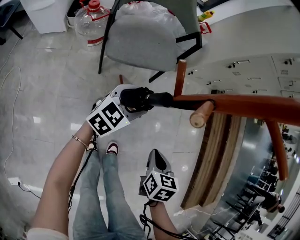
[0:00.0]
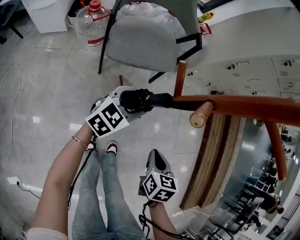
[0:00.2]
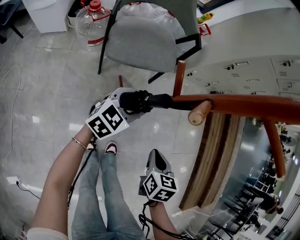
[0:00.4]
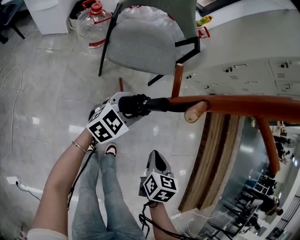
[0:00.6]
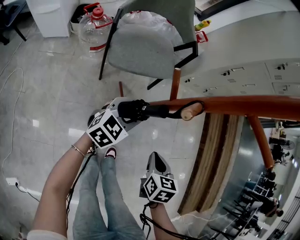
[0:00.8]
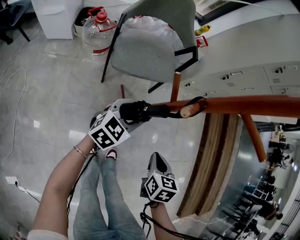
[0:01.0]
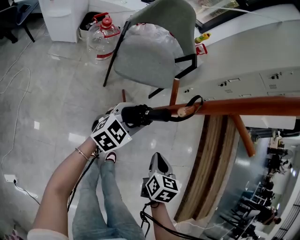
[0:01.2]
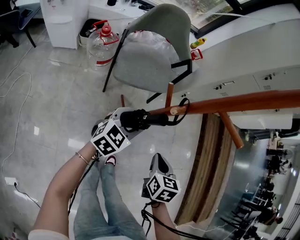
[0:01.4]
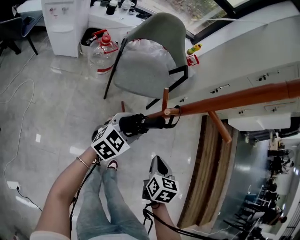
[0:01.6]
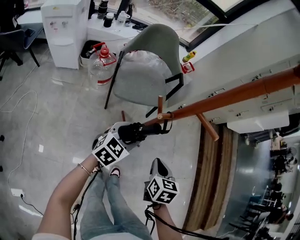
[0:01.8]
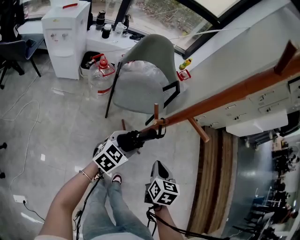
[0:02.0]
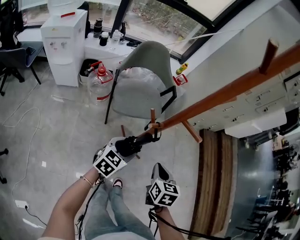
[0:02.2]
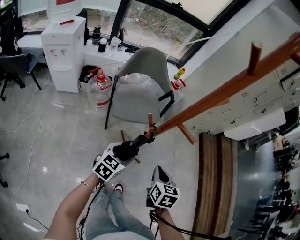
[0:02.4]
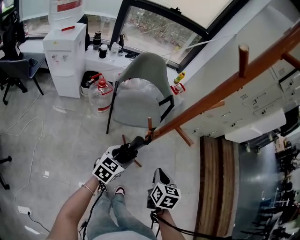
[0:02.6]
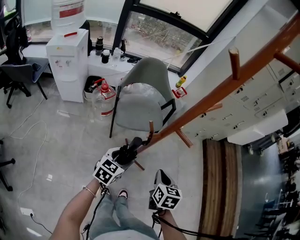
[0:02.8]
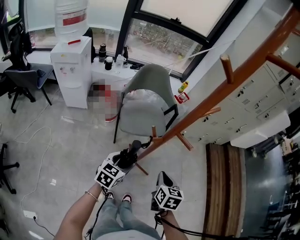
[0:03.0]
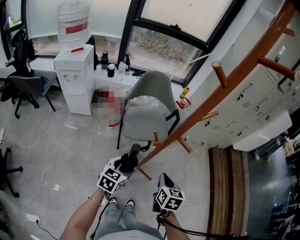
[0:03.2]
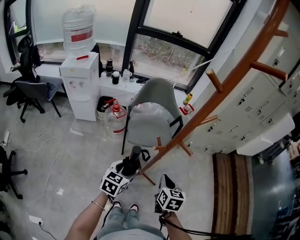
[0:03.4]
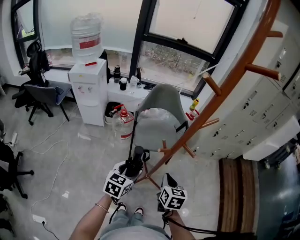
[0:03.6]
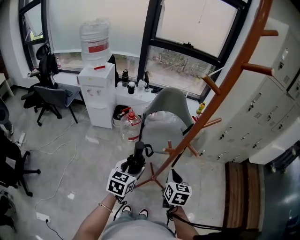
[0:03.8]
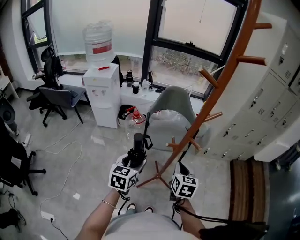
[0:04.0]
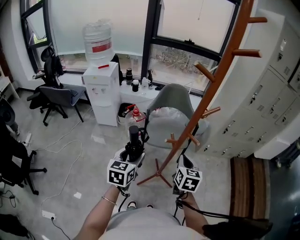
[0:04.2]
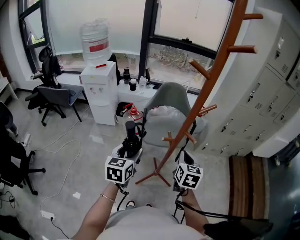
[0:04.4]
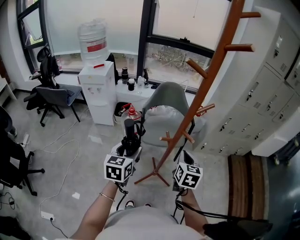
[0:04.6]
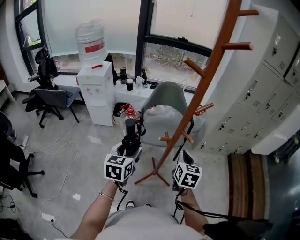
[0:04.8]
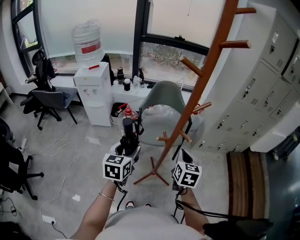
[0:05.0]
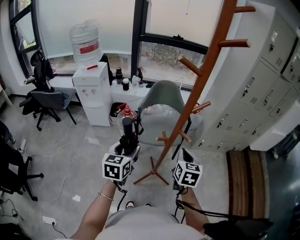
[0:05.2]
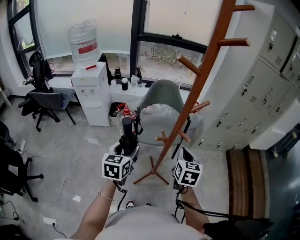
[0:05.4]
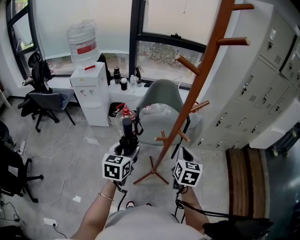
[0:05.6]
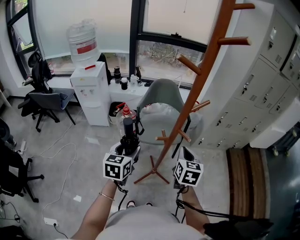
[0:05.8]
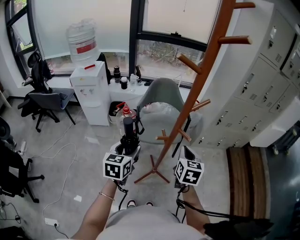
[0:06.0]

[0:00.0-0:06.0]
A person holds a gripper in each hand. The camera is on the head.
0:00.0 to 0:01.6: The right gripper shifts about 10 cm upward, while the left gripper shifts approximately 15 cm upward and backward.
0:01.6 to 0:03.0: The left gripper moves upward and backward, some 10 cm. The right gripper moves upward, about 10 cm.
0:03.0 to 0:04.4: The right gripper is displaced upward and forward by some 10 cm; the left gripper is displaced upward and to the left by approximately 15 cm, and changes its angle by about 30 degrees.
0:04.4 to 0:06.0: There are only small adjustments of the grippers.

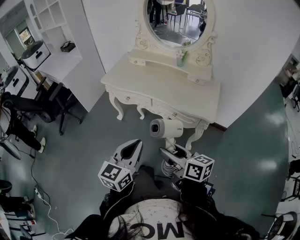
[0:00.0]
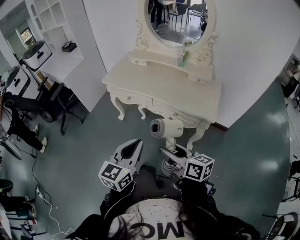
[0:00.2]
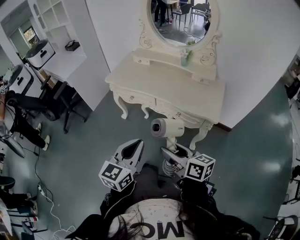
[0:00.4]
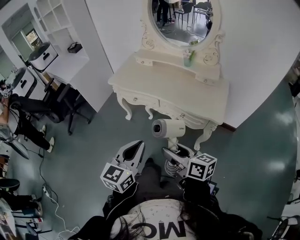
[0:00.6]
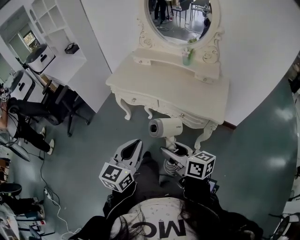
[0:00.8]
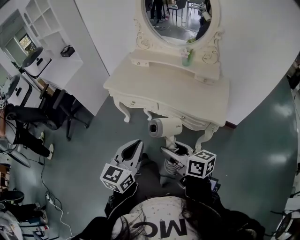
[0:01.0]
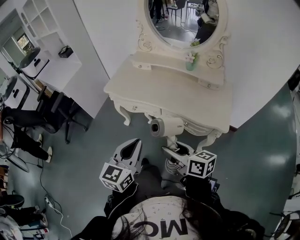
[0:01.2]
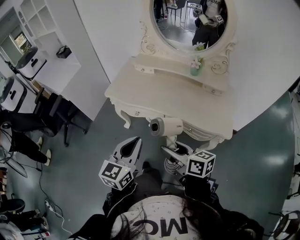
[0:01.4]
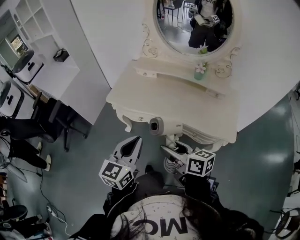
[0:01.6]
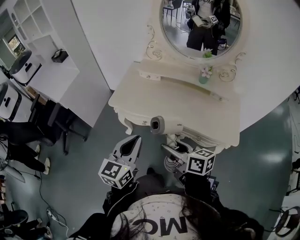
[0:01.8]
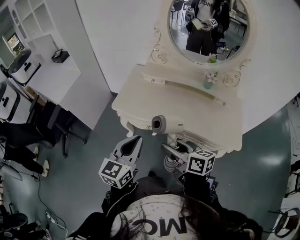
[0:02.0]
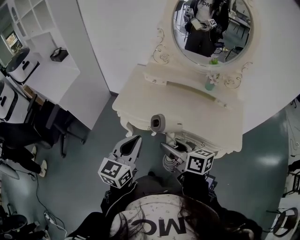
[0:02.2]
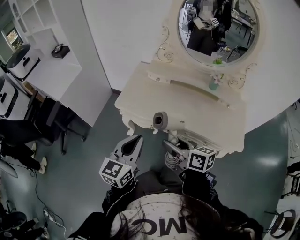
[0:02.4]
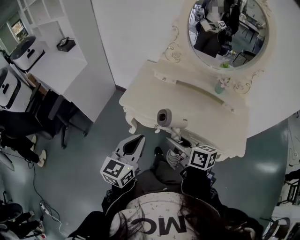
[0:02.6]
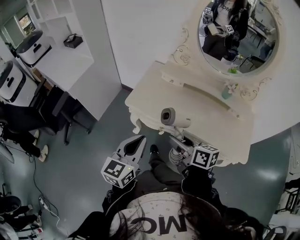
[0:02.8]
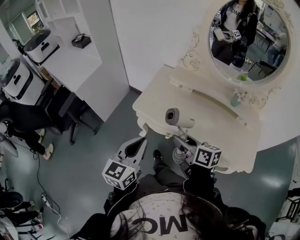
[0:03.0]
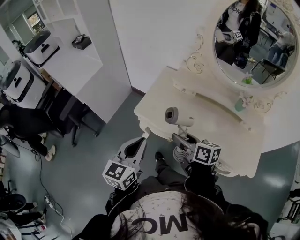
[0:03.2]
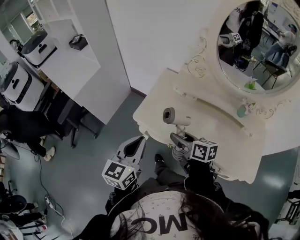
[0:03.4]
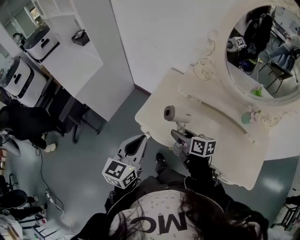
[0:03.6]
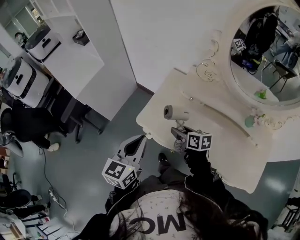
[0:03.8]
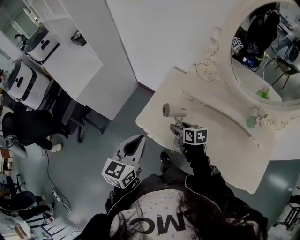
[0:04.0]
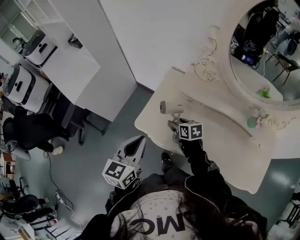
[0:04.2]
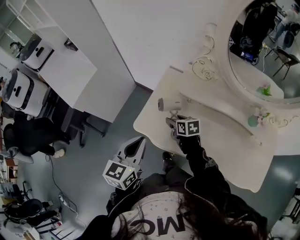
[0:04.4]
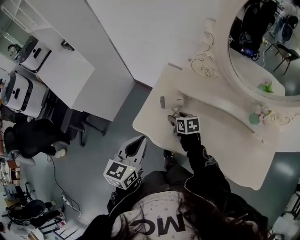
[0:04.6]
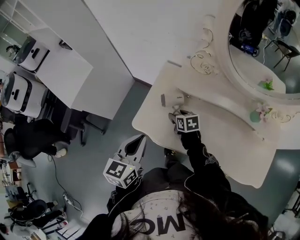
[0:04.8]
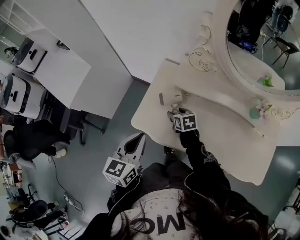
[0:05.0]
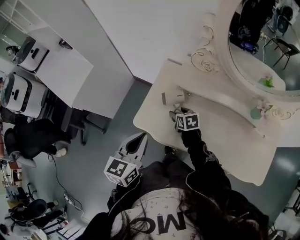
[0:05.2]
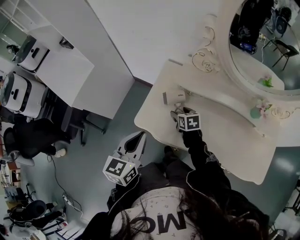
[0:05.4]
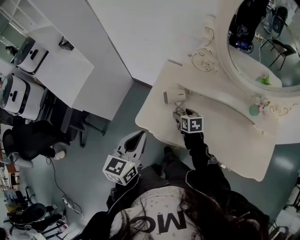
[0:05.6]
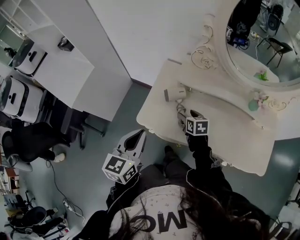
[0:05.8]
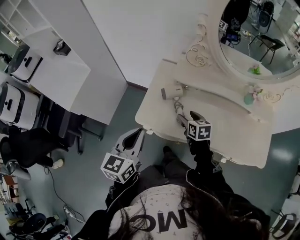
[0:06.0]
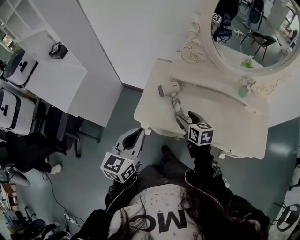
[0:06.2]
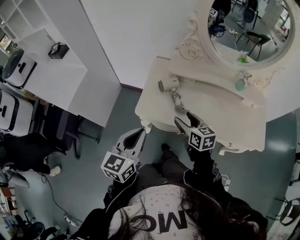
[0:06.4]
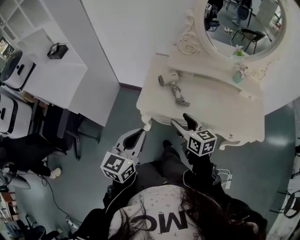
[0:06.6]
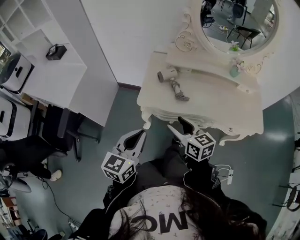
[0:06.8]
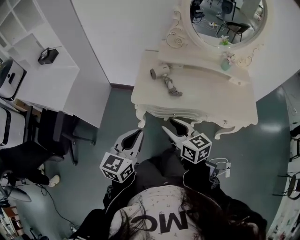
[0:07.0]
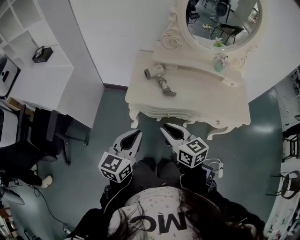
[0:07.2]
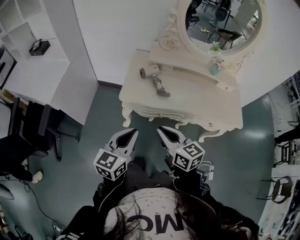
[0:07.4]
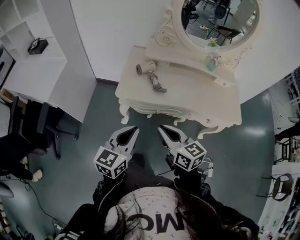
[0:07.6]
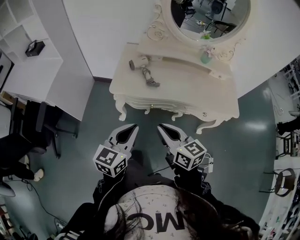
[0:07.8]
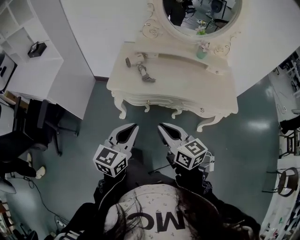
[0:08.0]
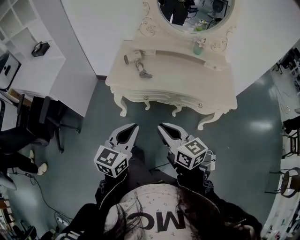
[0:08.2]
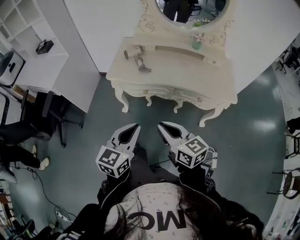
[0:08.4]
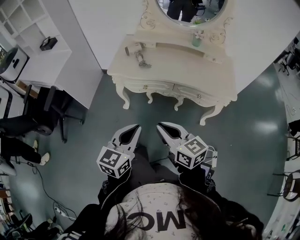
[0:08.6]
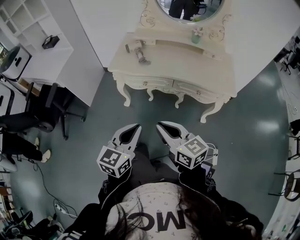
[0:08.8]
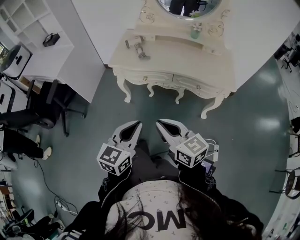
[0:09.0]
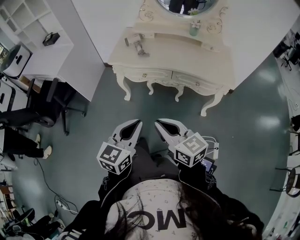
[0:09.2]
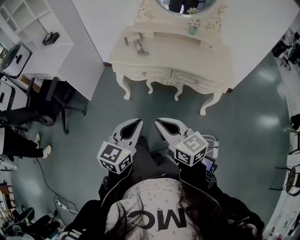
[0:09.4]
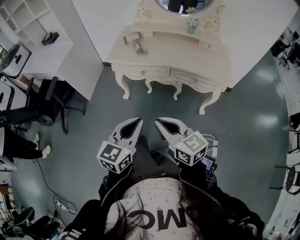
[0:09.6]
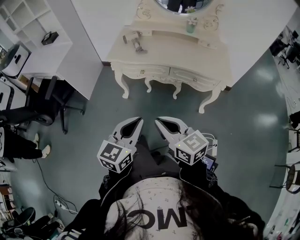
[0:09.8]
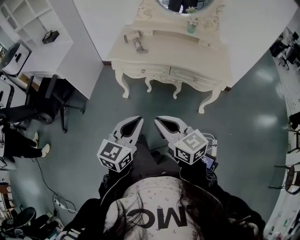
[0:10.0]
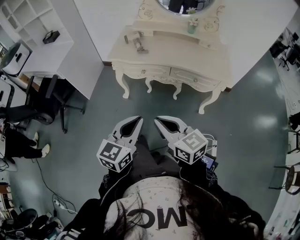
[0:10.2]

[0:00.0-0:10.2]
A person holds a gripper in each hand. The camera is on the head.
0:00.0 to 0:01.4: Both grippers travel together forward, approximately 15 cm.
0:01.4 to 0:03.0: Both grippers travel together forward and to the left, some 25 cm.
0:03.0 to 0:04.4: The right gripper is displaced forward and downward by roughly 35 cm, and swivels about 20 degrees, while the left gripper moves forward, approximately 20 cm.
0:04.4 to 0:05.8: The right gripper travels to the right by some 5 cm.
0:05.8 to 0:07.2: The left gripper travels backward by some 15 cm, and swivels about 20 degrees; the right gripper travels backward and upward by approximately 35 cm, changes its angle by approximately 30 degrees, and closes its fingers.
0:07.2 to 0:08.8: The two grippers go about 30 cm backward and to the right.
0:08.8 to 0:10.2: The grippers both shift backward by about 5 cm.

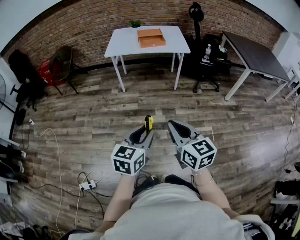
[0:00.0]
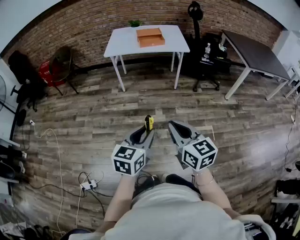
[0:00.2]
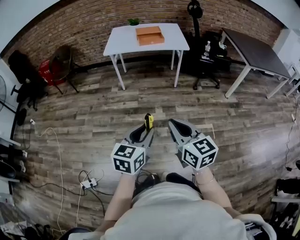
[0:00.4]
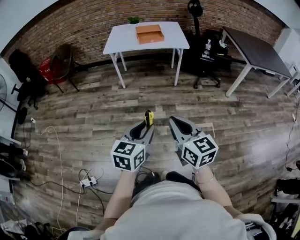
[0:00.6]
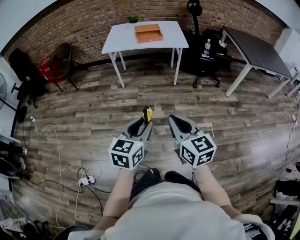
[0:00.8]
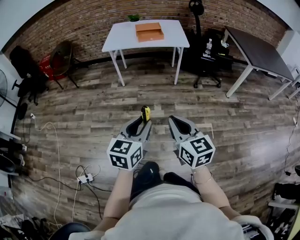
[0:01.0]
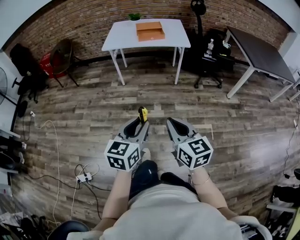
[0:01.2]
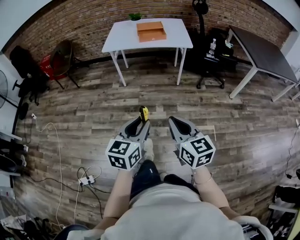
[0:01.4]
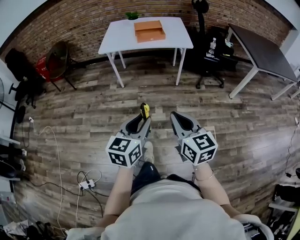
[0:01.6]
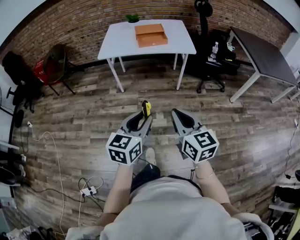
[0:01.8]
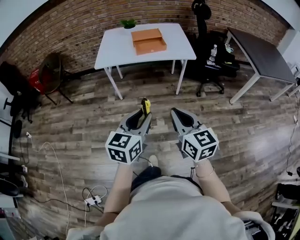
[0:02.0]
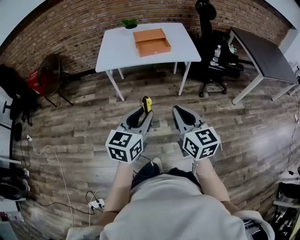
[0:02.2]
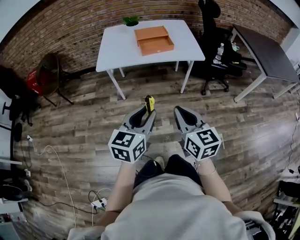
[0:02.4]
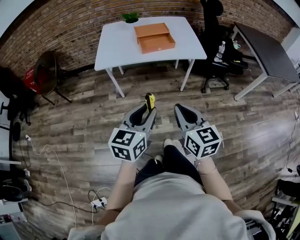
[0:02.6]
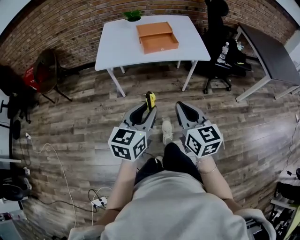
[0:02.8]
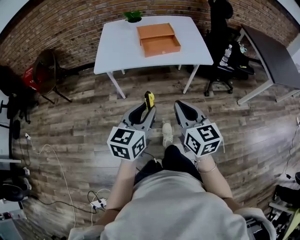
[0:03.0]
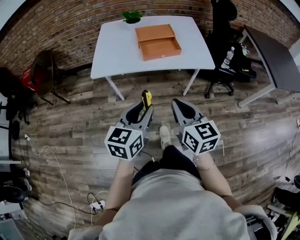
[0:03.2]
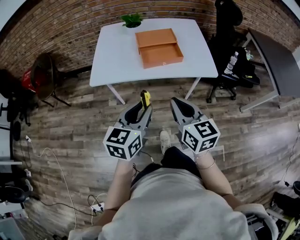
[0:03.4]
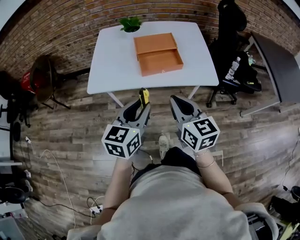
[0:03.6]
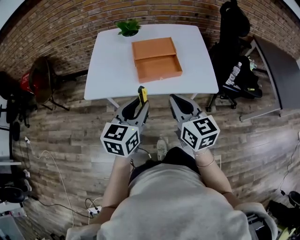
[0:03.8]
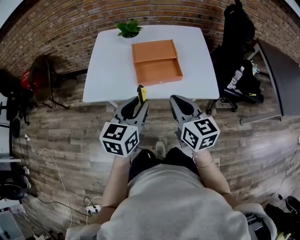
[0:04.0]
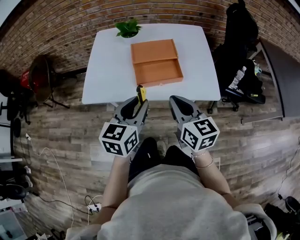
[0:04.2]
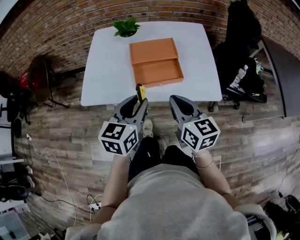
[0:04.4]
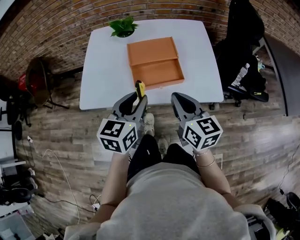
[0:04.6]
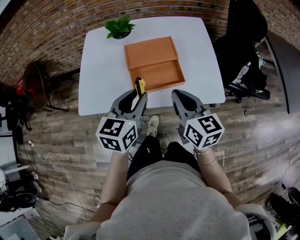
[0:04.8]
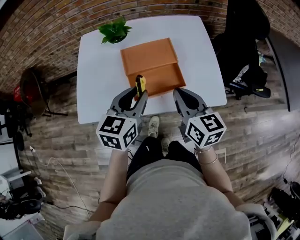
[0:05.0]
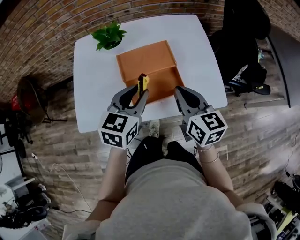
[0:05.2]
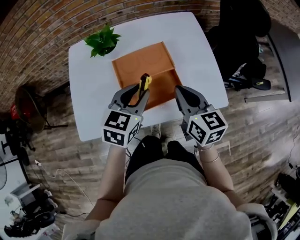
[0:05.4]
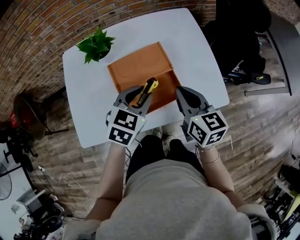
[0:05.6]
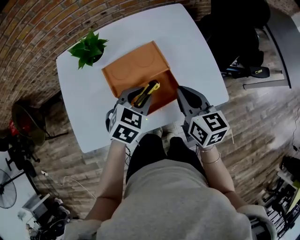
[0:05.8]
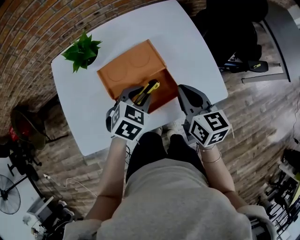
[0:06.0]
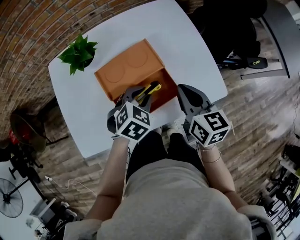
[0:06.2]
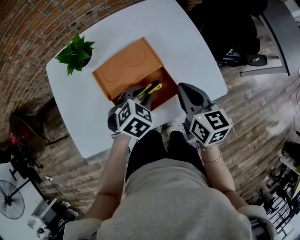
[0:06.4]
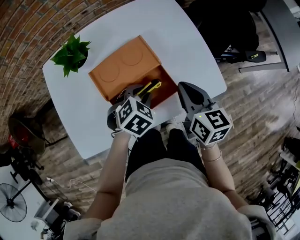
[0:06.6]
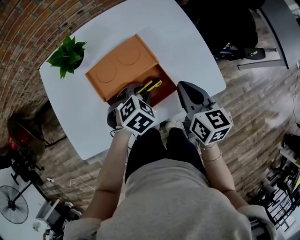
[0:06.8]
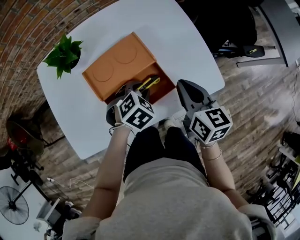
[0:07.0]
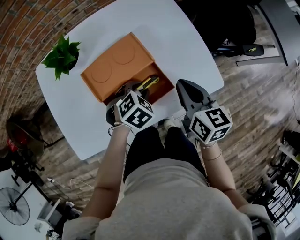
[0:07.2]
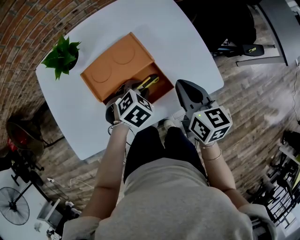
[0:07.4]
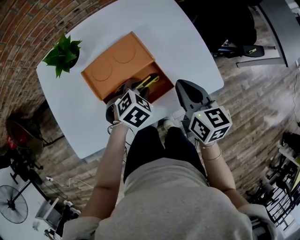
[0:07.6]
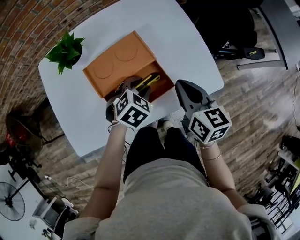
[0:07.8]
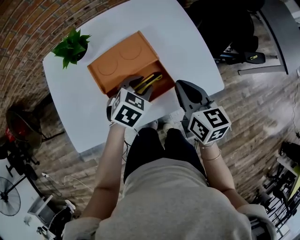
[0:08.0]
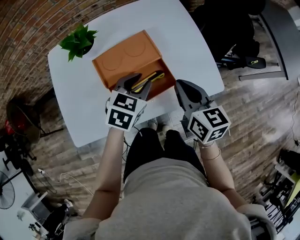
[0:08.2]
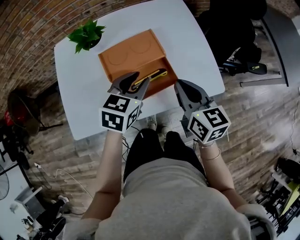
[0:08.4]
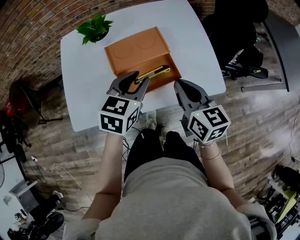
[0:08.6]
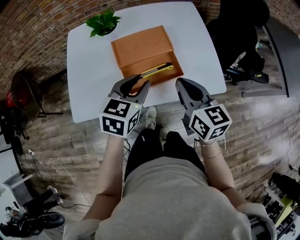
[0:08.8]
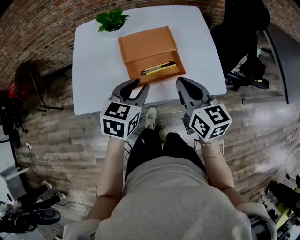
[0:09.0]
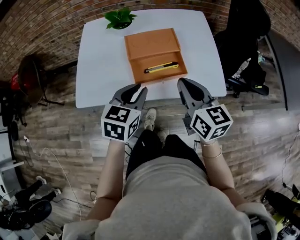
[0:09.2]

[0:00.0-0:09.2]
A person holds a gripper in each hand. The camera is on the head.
0:00.0 to 0:01.6: The right gripper moves forward and to the right, about 15 cm. Meanwhile the left gripper heads forward, covering some 15 cm.
0:01.6 to 0:03.0: The two grippers go about 35 cm forward.
0:03.0 to 0:04.6: The grippers both shift forward by approximately 35 cm.
0:04.6 to 0:06.2: The grippers both shift forward and downward by some 20 cm. The right gripper changes its angle by some 20 degrees; the left gripper tips its fingers downward by about 40 degrees.
0:06.2 to 0:07.6: The left gripper shifts approximately 5 cm downward.
0:07.6 to 0:09.2: The right gripper shifts some 15 cm backward, upward and to the left, and swivels about 30 degrees. The left gripper is displaced upward and backward by about 25 cm, and tips its fingers upward by about 30 degrees.
